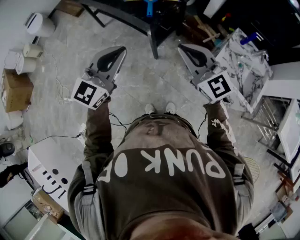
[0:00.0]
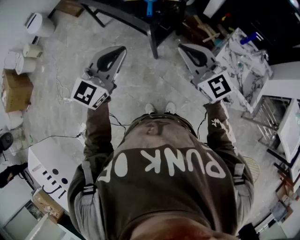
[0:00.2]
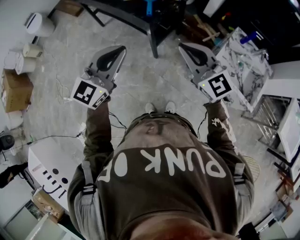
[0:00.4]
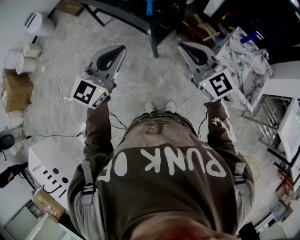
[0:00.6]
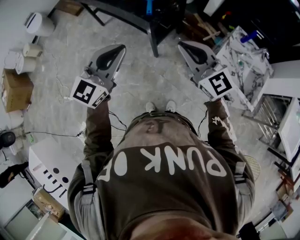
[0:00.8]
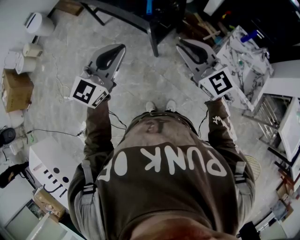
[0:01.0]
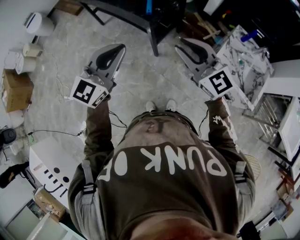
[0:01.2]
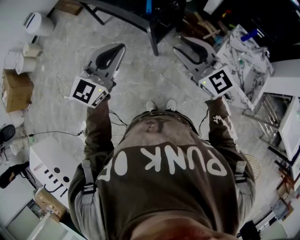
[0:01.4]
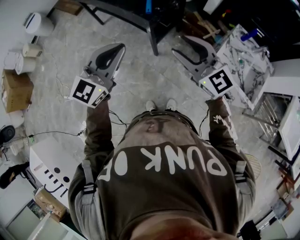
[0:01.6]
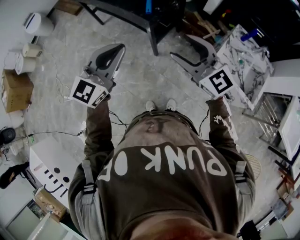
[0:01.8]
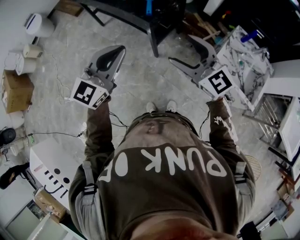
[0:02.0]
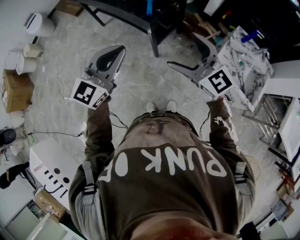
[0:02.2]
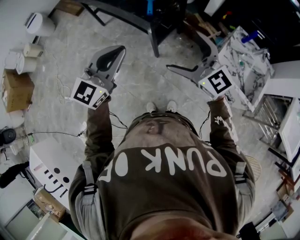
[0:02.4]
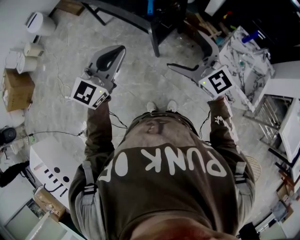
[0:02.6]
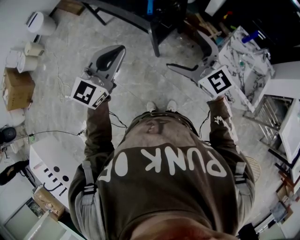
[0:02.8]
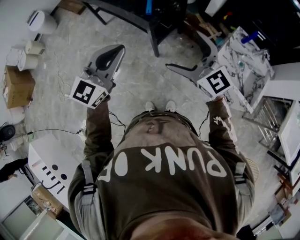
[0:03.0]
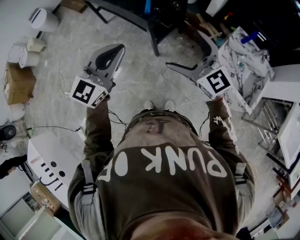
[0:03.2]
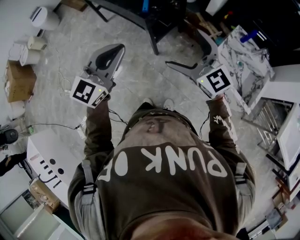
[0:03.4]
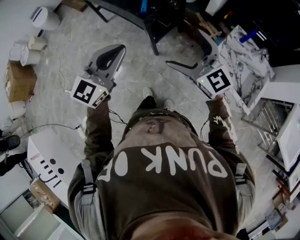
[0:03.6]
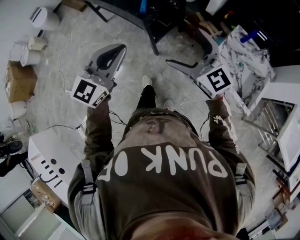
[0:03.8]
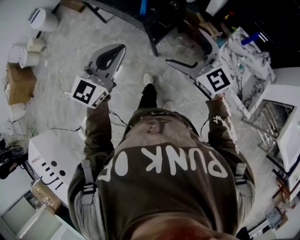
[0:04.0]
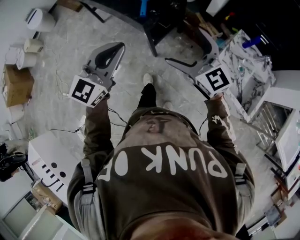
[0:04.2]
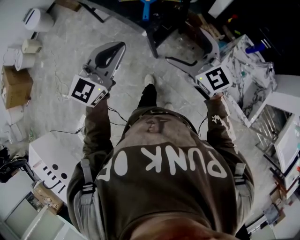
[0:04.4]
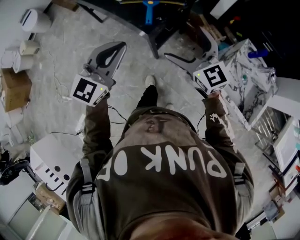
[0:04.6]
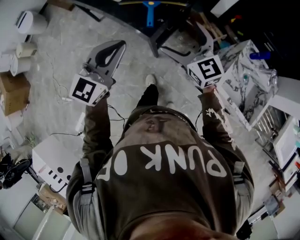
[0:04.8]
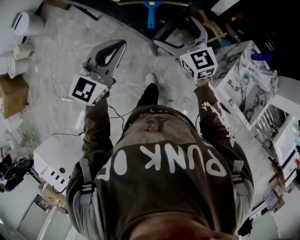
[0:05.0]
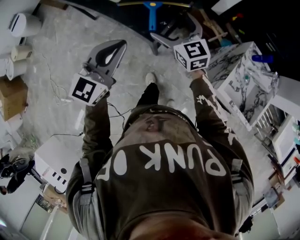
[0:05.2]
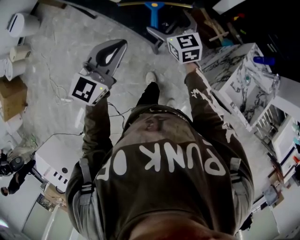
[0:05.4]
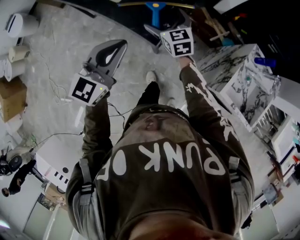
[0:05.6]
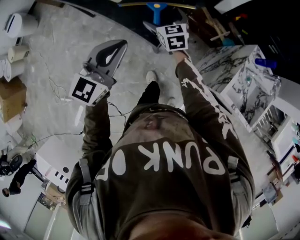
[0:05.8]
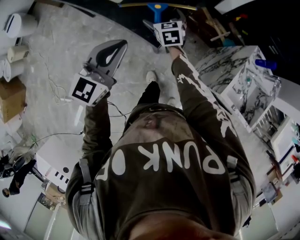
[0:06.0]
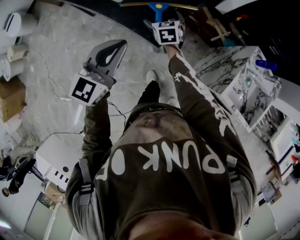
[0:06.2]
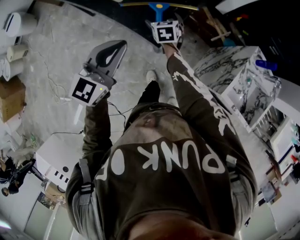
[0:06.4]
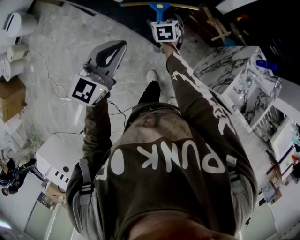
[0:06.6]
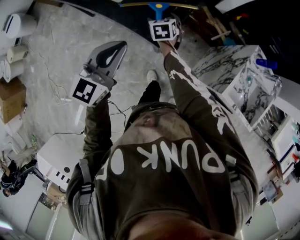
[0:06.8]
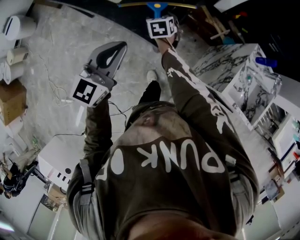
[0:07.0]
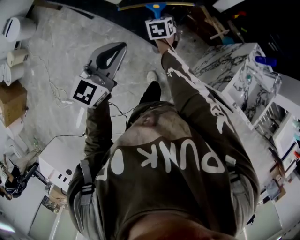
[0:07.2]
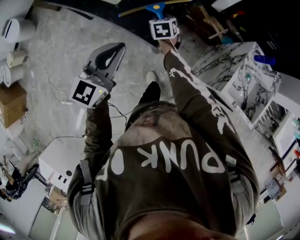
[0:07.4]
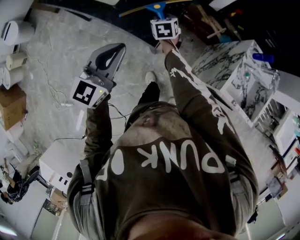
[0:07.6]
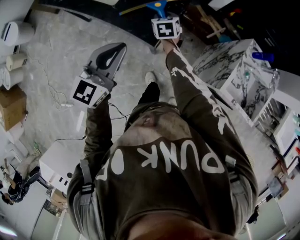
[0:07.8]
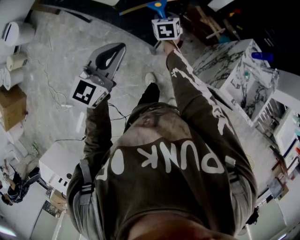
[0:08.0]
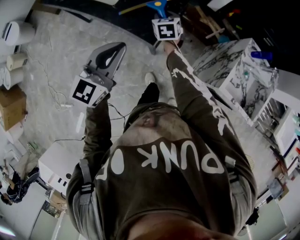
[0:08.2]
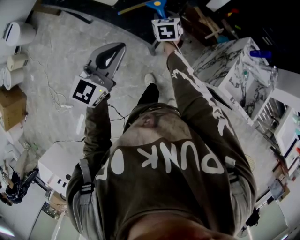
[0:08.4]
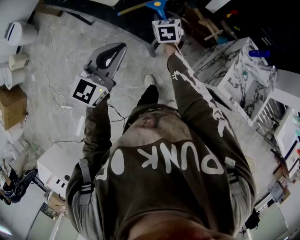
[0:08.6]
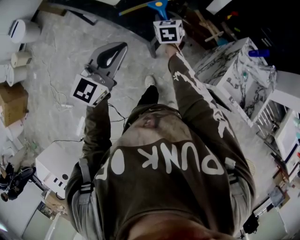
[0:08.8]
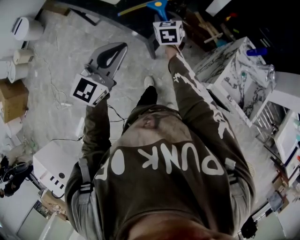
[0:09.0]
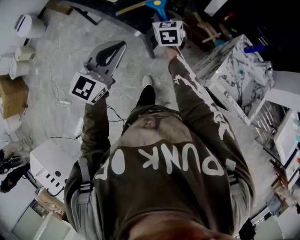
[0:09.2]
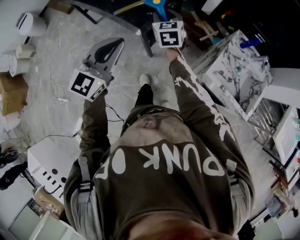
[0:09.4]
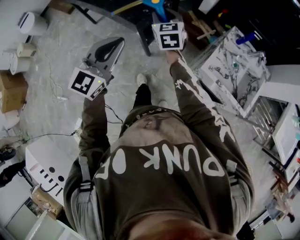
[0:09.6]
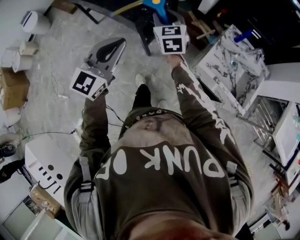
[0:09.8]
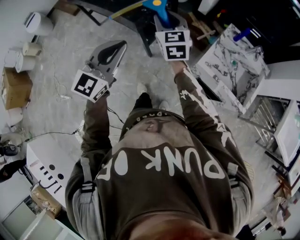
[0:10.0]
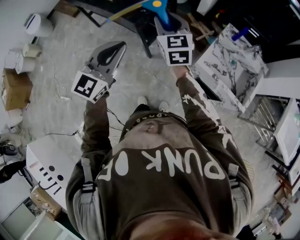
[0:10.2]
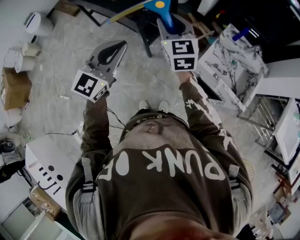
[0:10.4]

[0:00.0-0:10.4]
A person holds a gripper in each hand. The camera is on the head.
0:00.0 to 0:01.4: Both grippers stay about where they are.
0:01.4 to 0:03.0: The right gripper opens.
0:03.0 to 0:04.4: The two grippers go some 10 cm forward.
0:04.4 to 0:06.0: The right gripper heads forward, downward and to the left, covering approximately 40 cm, and points its fingers some 30 degrees further downward. Meanwhile the left gripper is displaced forward and to the left by roughly 20 cm.
0:06.0 to 0:07.4: The right gripper closes its fingers.
0:07.4 to 0:09.0: The left gripper is displaced to the right and backward by approximately 10 cm, while the right gripper is displaced upward, to the right and backward by about 15 cm.
0:09.0 to 0:10.4: The left gripper is displaced backward and to the right by about 20 cm. Meanwhile the right gripper travels backward, upward and to the right by about 35 cm, and swivels approximately 20 degrees.

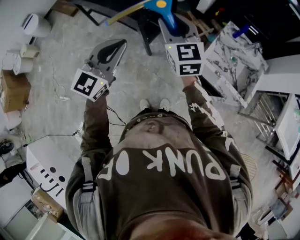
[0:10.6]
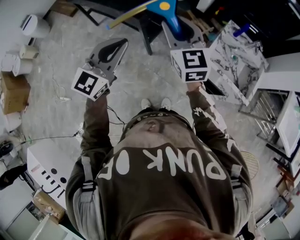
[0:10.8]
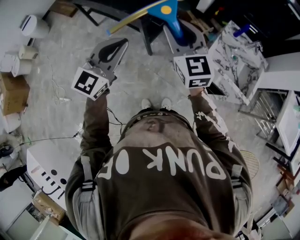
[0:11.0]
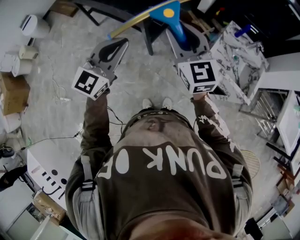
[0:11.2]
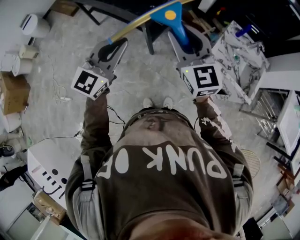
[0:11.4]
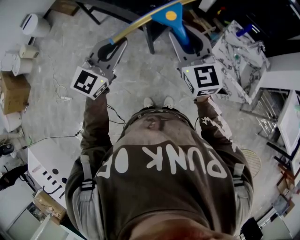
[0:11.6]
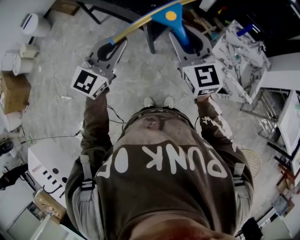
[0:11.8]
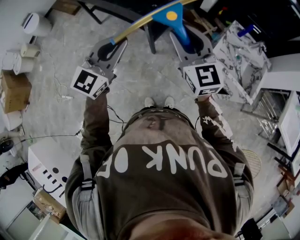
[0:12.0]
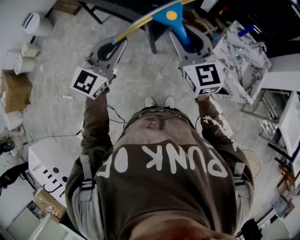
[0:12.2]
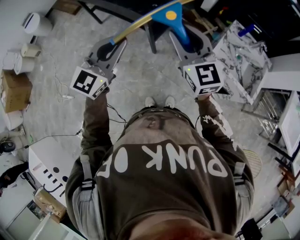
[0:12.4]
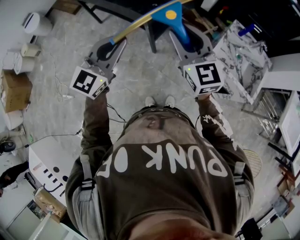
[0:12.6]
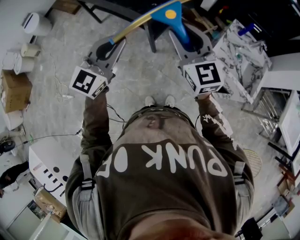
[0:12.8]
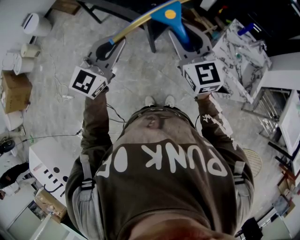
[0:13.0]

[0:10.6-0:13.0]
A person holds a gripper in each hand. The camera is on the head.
0:10.6 to 0:11.8: The right gripper moves backward, about 10 cm. The left gripper is displaced to the left by roughly 5 cm.
0:11.8 to 0:13.0: Neither gripper changes place.

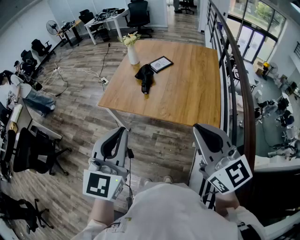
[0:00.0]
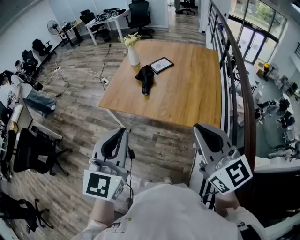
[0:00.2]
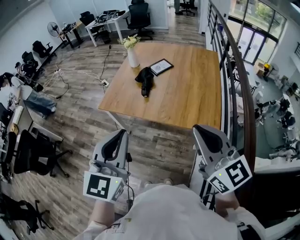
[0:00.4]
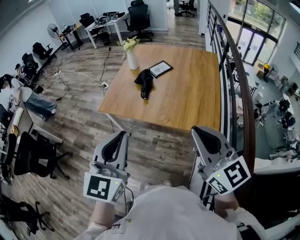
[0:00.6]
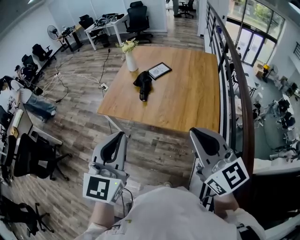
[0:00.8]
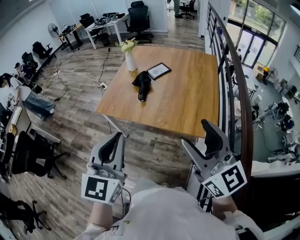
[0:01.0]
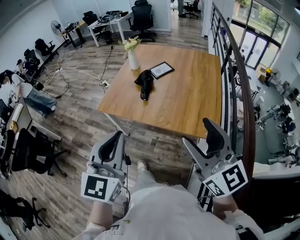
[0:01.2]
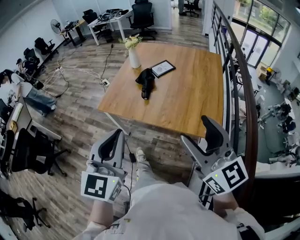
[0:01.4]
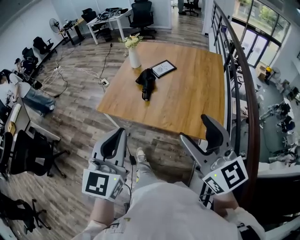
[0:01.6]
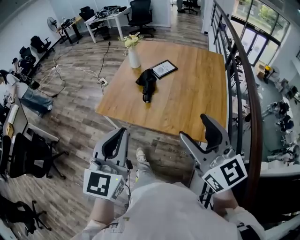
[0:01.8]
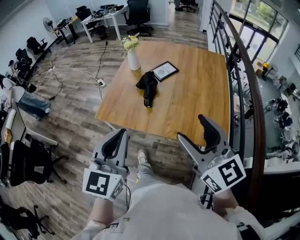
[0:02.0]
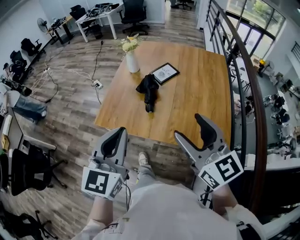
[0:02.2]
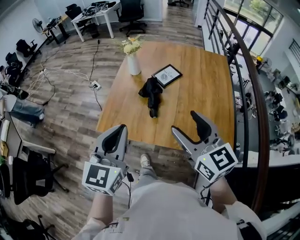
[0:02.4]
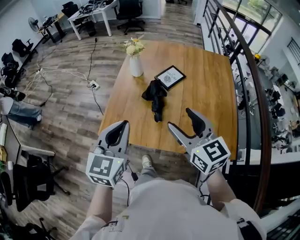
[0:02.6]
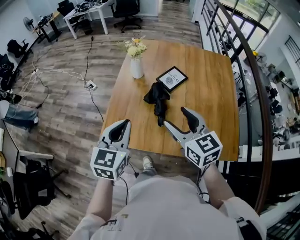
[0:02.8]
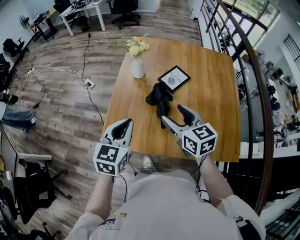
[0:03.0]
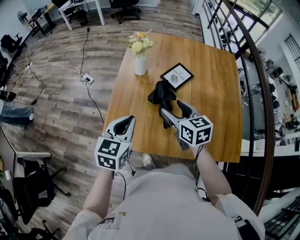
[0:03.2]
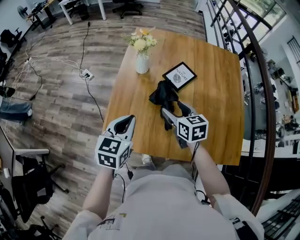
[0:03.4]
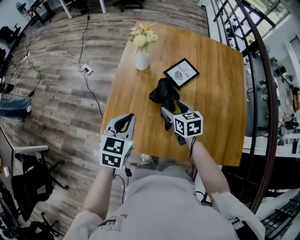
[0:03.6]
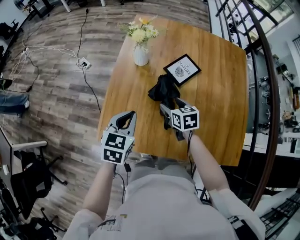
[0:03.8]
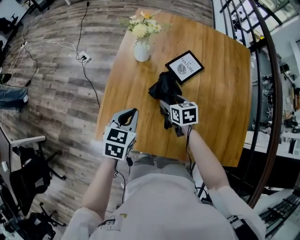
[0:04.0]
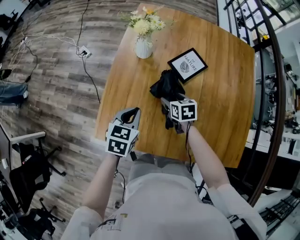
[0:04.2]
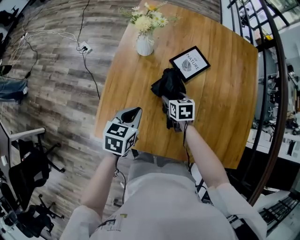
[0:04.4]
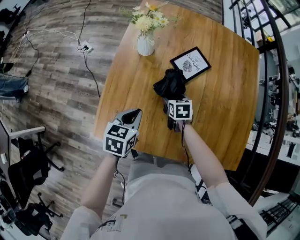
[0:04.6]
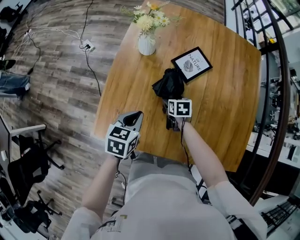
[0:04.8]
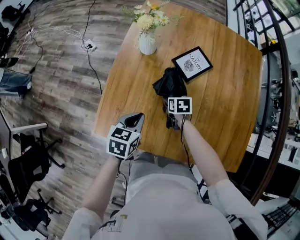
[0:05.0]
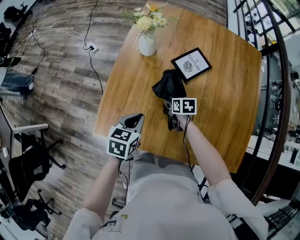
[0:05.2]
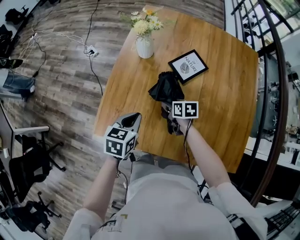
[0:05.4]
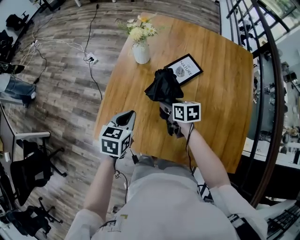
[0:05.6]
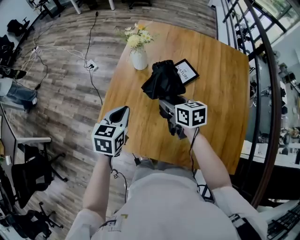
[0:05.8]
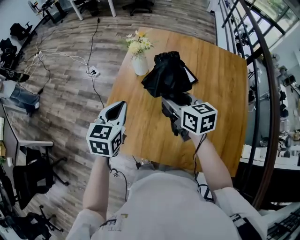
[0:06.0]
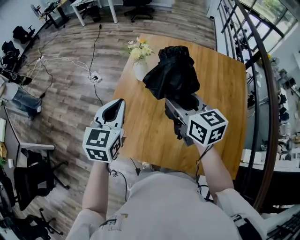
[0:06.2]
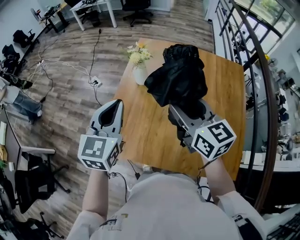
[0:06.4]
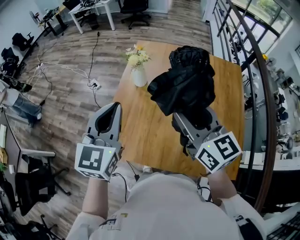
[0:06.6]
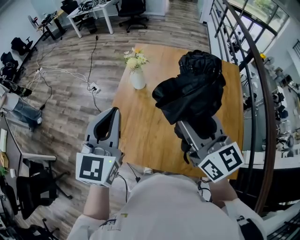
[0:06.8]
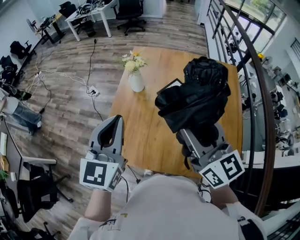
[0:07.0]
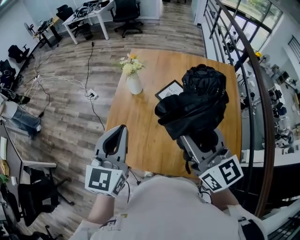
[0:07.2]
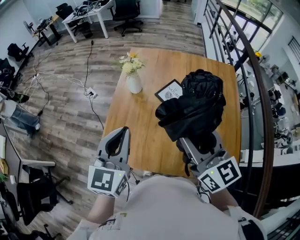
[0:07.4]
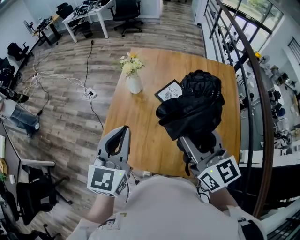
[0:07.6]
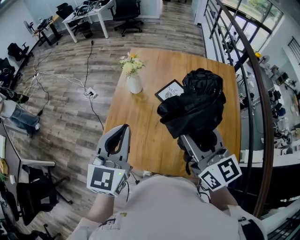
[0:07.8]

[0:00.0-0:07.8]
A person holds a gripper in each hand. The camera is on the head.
0:00.0 to 0:01.6: The two grippers go roughly 10 cm forward. The right gripper opens.
0:01.6 to 0:03.2: The pair of grippers is taken forward and to the left, about 60 cm. The right gripper travels downward by roughly 20 cm, and tips its fingers downward by about 30 degrees. The left gripper changes its angle by roughly 30 degrees.
0:03.2 to 0:04.6: The left gripper travels downward and forward by approximately 20 cm, and swivels roughly 20 degrees. Meanwhile the right gripper travels downward and forward by some 35 cm, and points its fingers about 30 degrees further downward.
0:04.6 to 0:06.2: The left gripper shifts roughly 25 cm upward, and turns by approximately 30 degrees; the right gripper moves upward, approximately 40 cm, and angles its fingers upward, by some 40 degrees.
0:06.2 to 0:07.8: The right gripper heads backward, upward and to the right, covering about 15 cm. The left gripper travels upward and backward by approximately 10 cm.

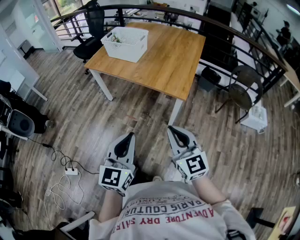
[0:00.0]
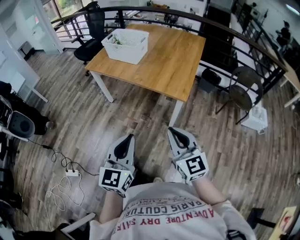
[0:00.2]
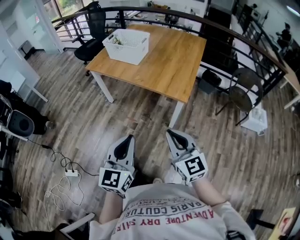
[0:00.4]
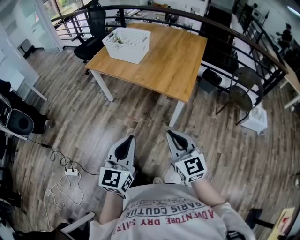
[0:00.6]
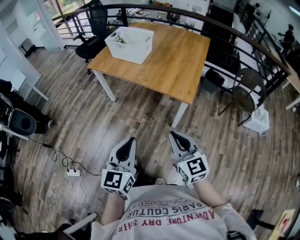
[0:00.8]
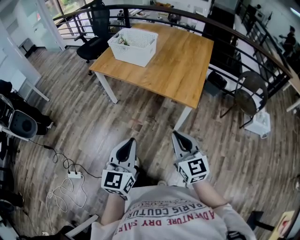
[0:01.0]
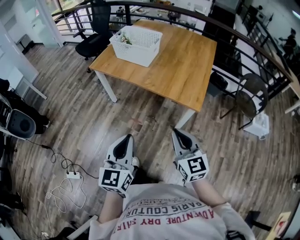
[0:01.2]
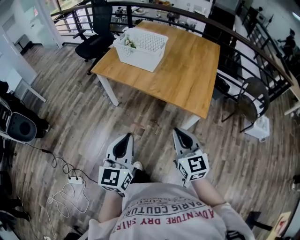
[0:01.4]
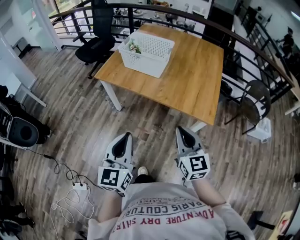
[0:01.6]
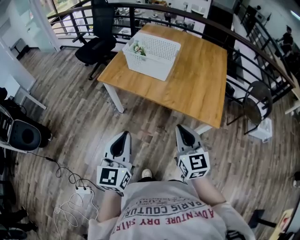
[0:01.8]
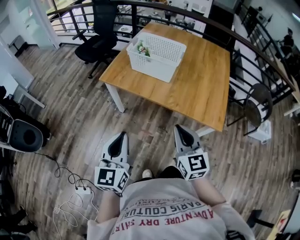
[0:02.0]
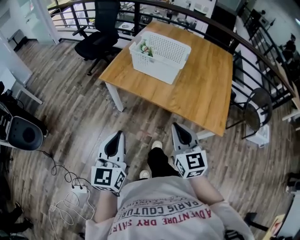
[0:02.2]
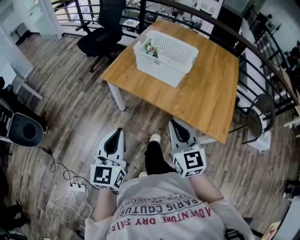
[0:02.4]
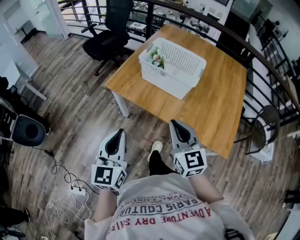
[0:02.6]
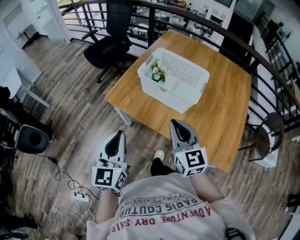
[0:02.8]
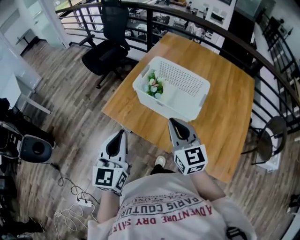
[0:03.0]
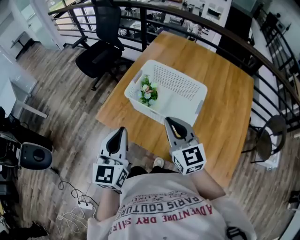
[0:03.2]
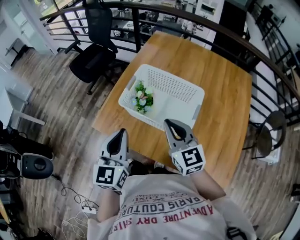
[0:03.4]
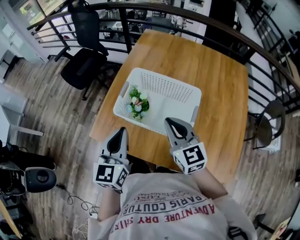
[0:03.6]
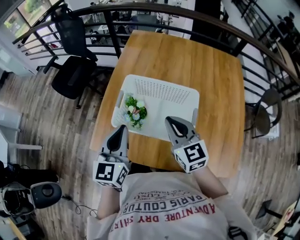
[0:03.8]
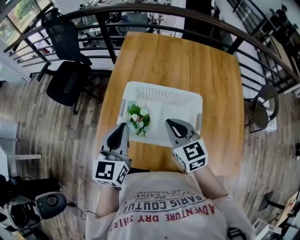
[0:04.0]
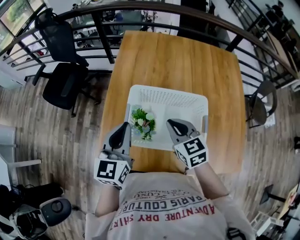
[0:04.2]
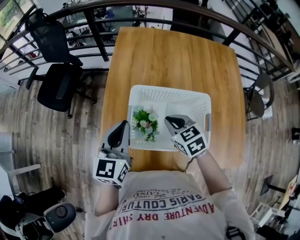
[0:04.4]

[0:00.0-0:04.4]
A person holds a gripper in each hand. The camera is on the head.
0:00.0 to 0:01.4: Both grippers move forward and to the left, approximately 20 cm.
0:01.4 to 0:03.0: The two grippers travel together, forward, some 50 cm.
0:03.0 to 0:04.4: The left gripper goes about 35 cm forward, and swivels about 30 degrees; the right gripper moves forward and downward, about 25 cm, and points its fingers roughly 40 degrees further downward.
